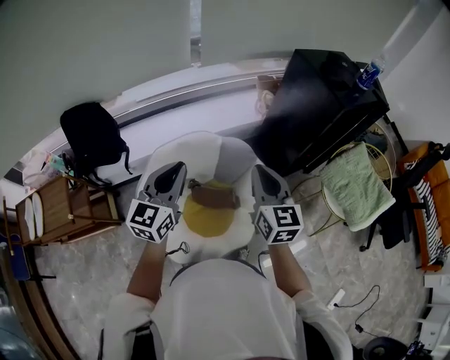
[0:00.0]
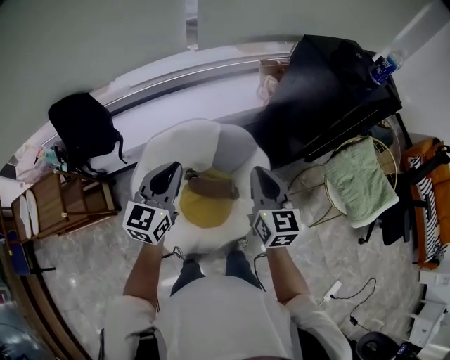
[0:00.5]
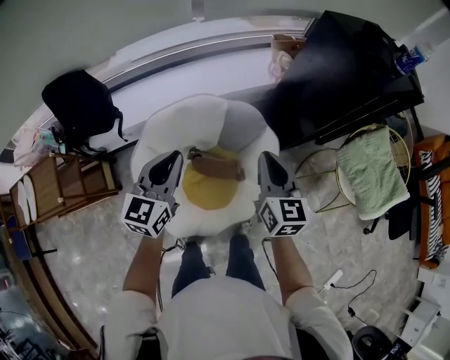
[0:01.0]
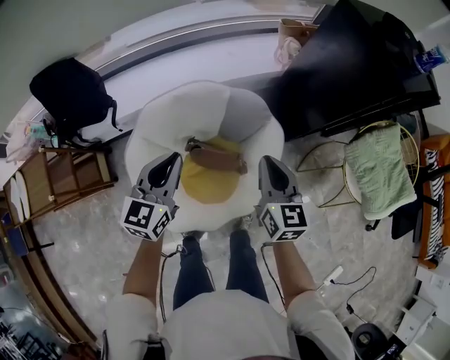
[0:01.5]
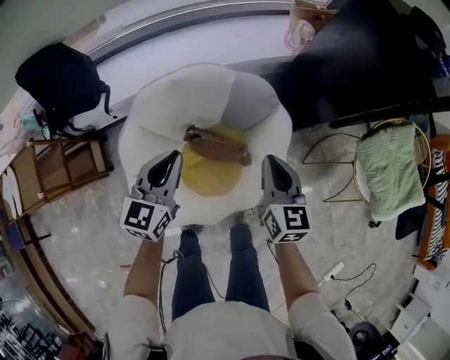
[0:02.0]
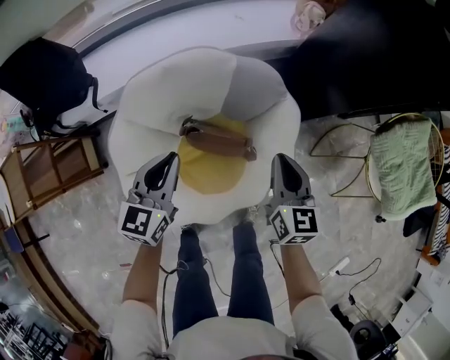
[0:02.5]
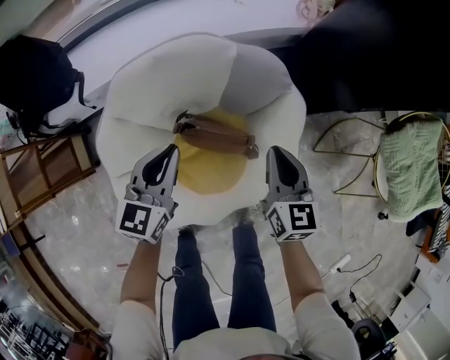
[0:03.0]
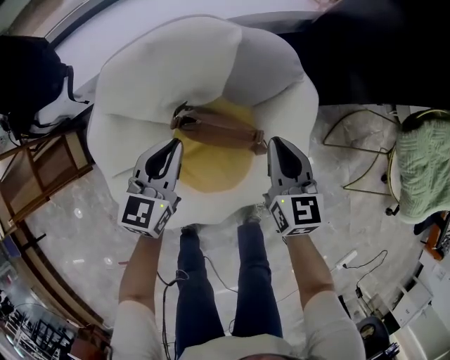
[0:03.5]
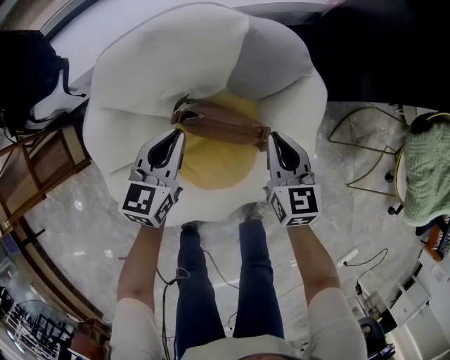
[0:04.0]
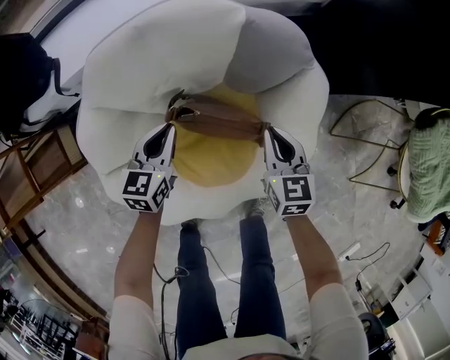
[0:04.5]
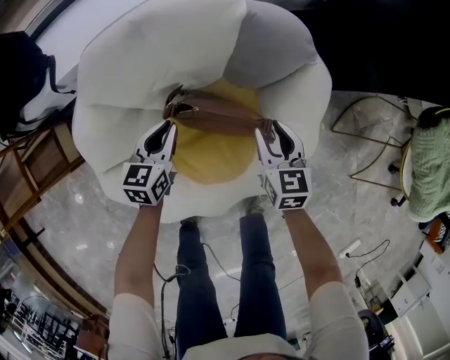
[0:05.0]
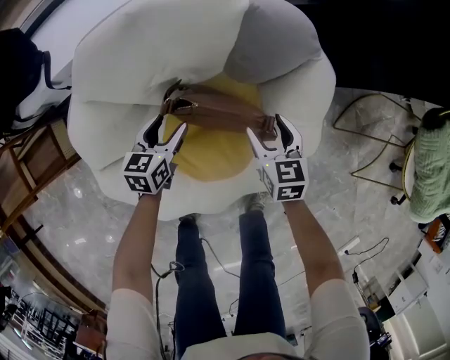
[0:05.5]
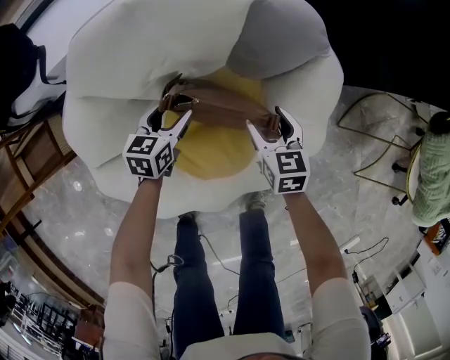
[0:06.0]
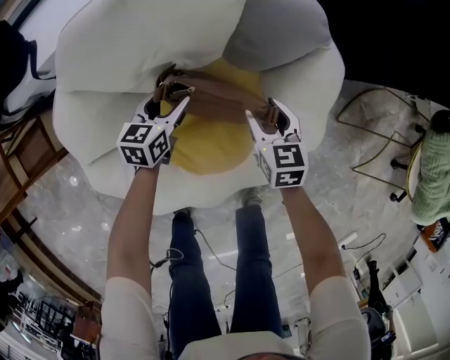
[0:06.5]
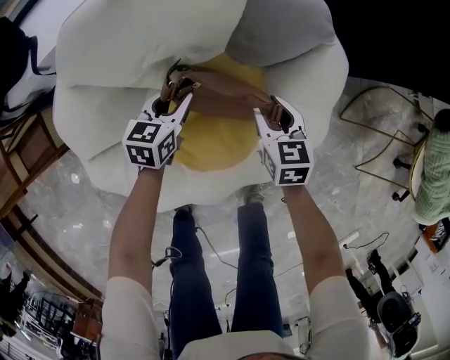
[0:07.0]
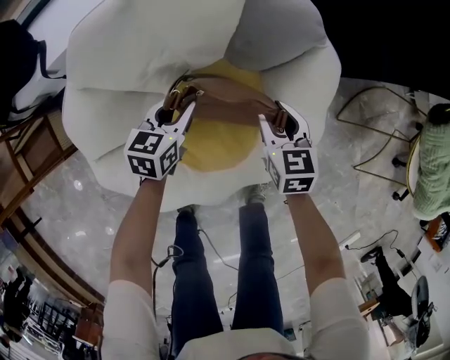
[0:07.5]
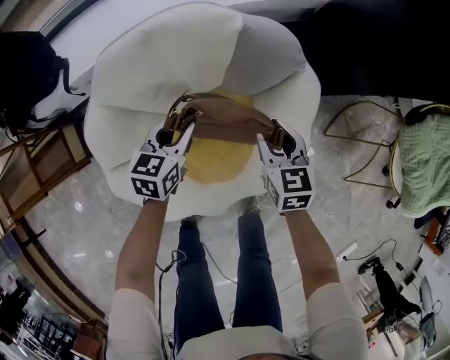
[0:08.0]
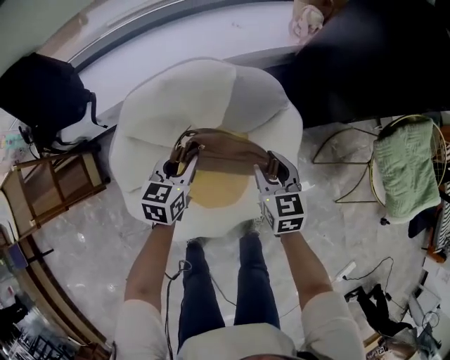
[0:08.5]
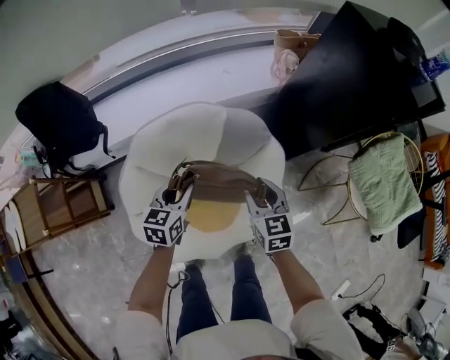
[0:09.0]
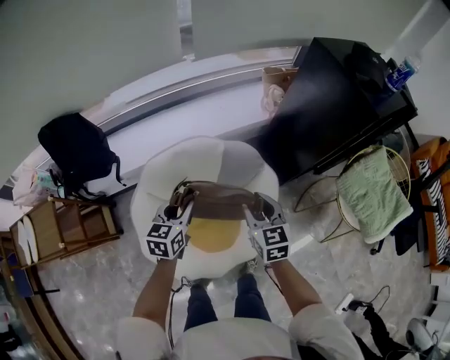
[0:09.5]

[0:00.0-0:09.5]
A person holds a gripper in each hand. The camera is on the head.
0:00.0 to 0:02.0: The grippers both shift downward by about 25 cm.
0:02.0 to 0:04.0: The grippers both shift downward by approximately 25 cm.
0:04.0 to 0:05.5: Both grippers move downward, approximately 15 cm. The right gripper opens; the left gripper opens.
0:05.5 to 0:07.5: The right gripper closes. Meanwhile the left gripper closes its fingers.
0:07.5 to 0:09.5: The grippers both shift upward by some 40 cm.

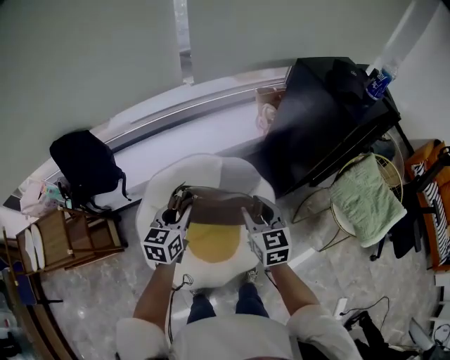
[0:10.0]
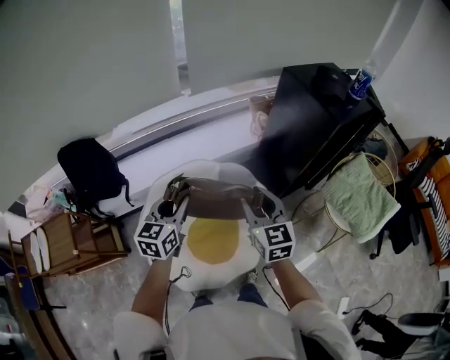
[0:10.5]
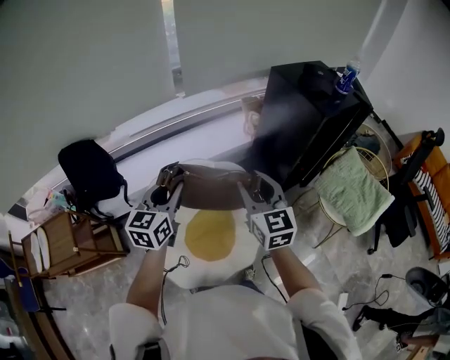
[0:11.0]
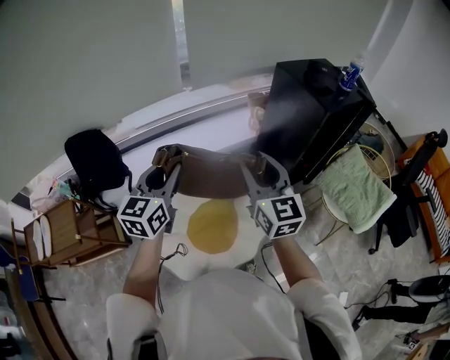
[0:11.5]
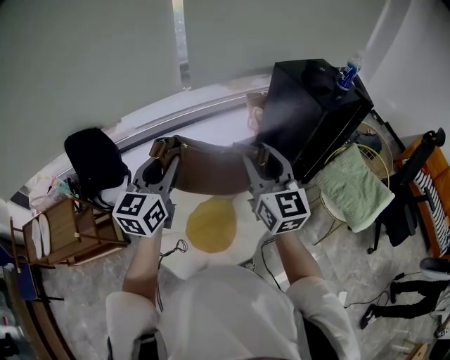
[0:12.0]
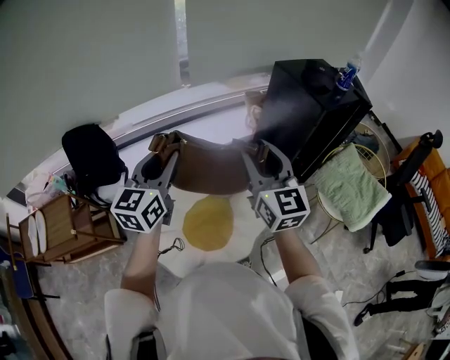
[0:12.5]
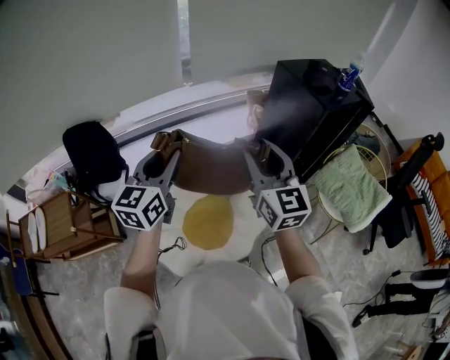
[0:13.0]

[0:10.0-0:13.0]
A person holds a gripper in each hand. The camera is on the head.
0:10.0 to 0:11.5: The grippers both shift upward by approximately 20 cm. The right gripper changes its angle by some 20 degrees.
0:11.5 to 0:13.0: The grippers move only a little.

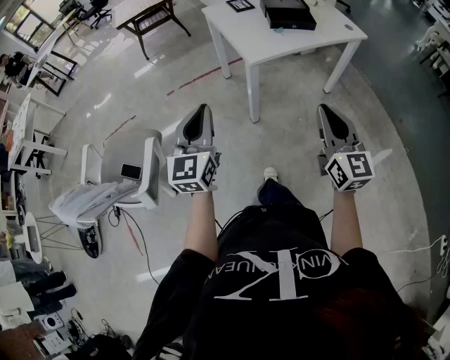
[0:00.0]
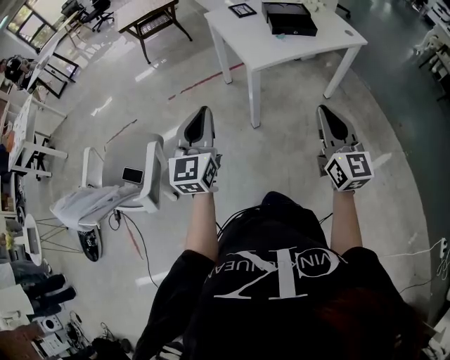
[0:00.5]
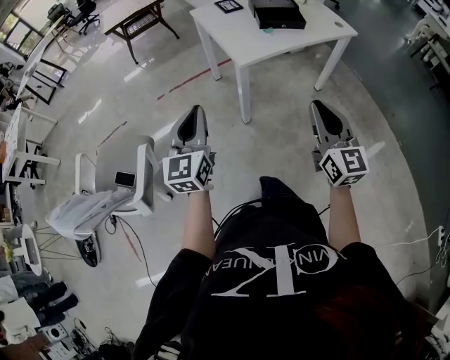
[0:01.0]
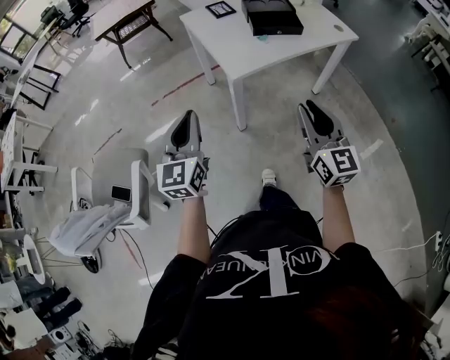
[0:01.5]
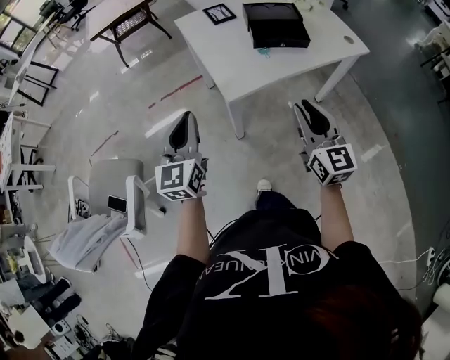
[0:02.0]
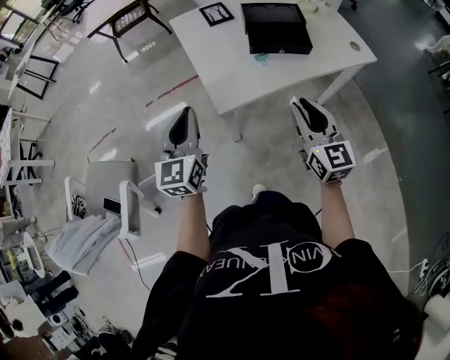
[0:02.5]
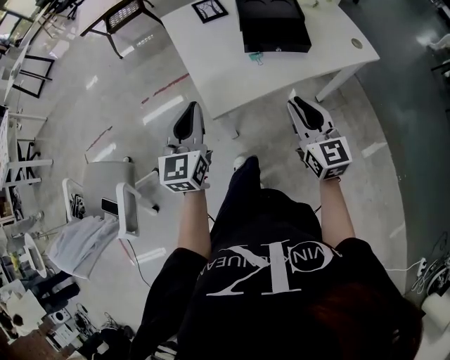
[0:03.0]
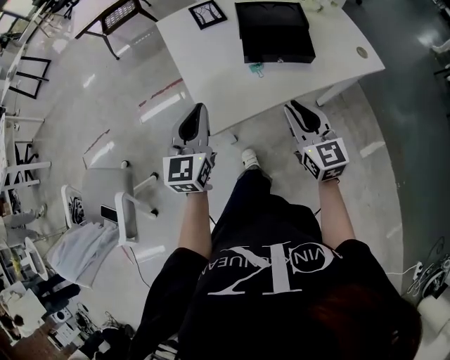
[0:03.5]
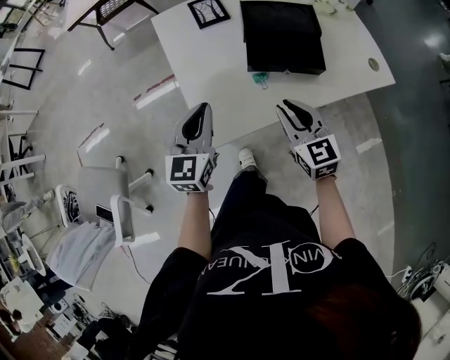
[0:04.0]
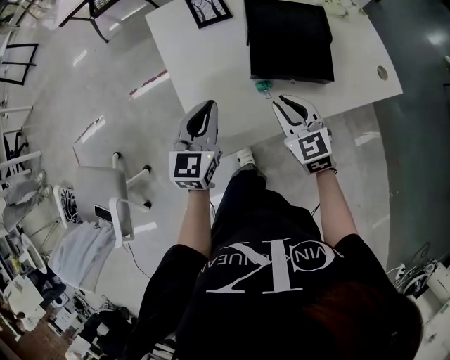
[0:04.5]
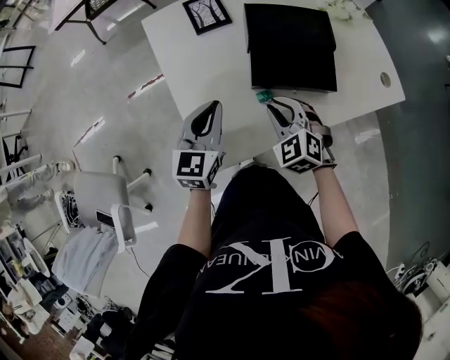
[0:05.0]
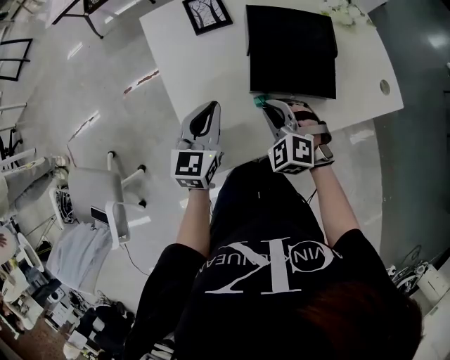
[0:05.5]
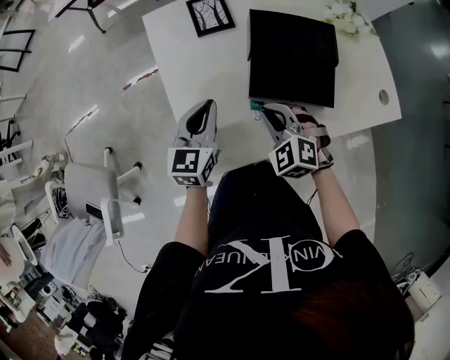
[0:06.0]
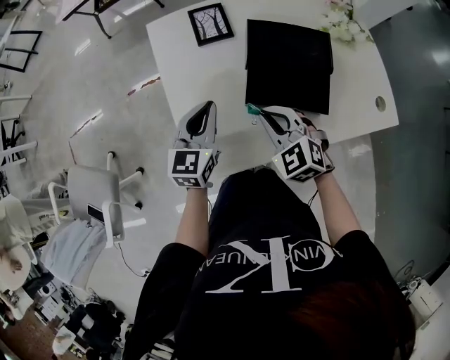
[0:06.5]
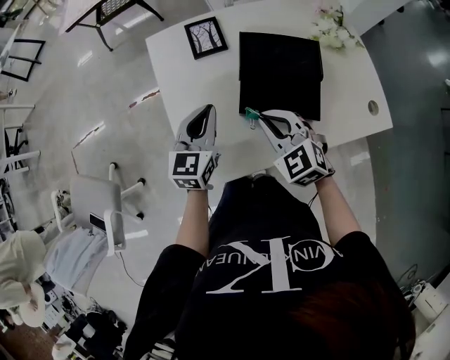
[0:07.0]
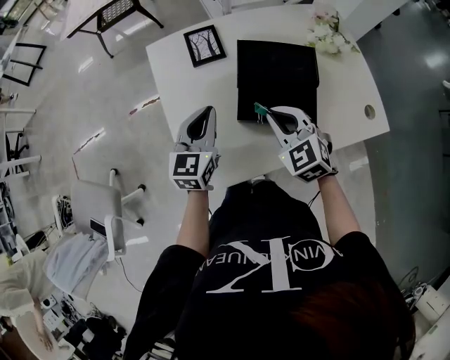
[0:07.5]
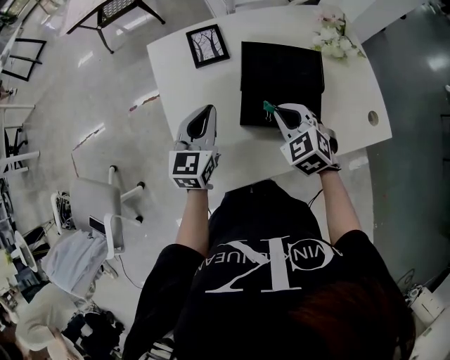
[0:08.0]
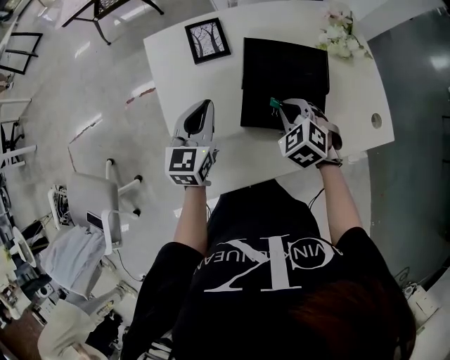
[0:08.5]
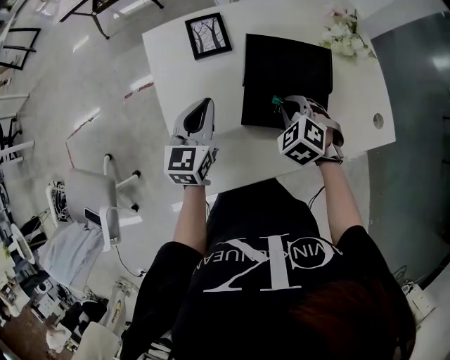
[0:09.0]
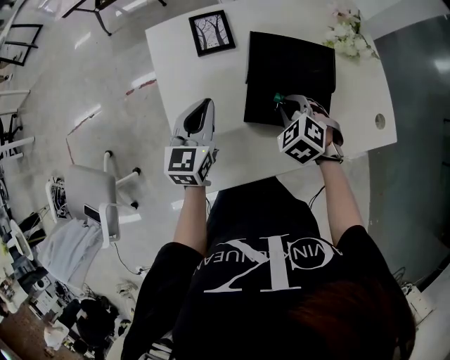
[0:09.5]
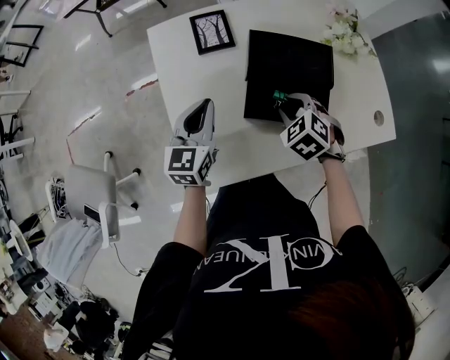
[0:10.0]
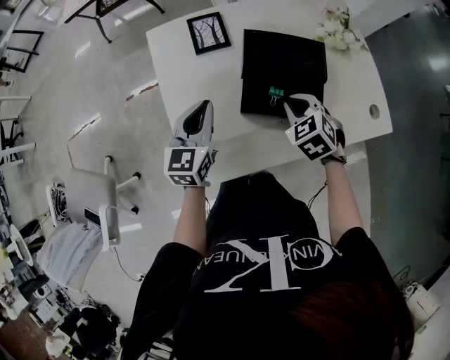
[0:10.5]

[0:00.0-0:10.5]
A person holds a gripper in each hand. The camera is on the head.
0:00.0 to 0:02.0: Both grippers move forward, roughly 20 cm.
0:02.0 to 0:04.0: The left gripper is displaced forward, to the right and downward by about 25 cm. Meanwhile the right gripper goes about 25 cm forward and downward, and rotates approximately 20 degrees.
0:04.0 to 0:06.5: The grippers both shift forward by about 10 cm. The right gripper turns by roughly 40 degrees.
0:06.5 to 0:08.5: The left gripper travels forward by approximately 5 cm. Meanwhile the right gripper is displaced to the right and forward by approximately 10 cm, and rotates approximately 20 degrees.
0:08.5 to 0:10.5: The grippers make only small movements.

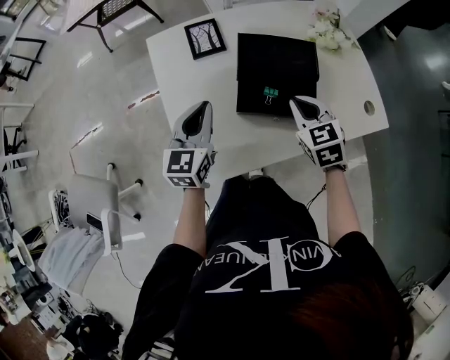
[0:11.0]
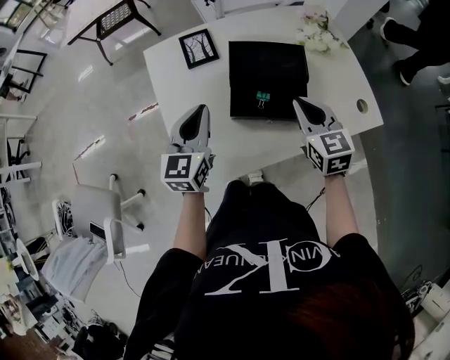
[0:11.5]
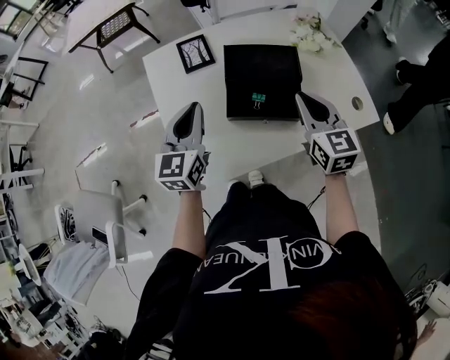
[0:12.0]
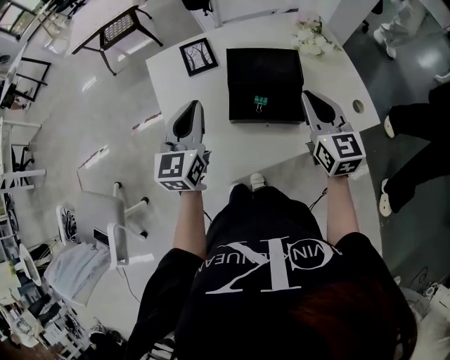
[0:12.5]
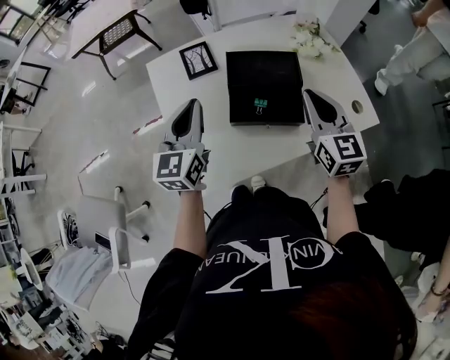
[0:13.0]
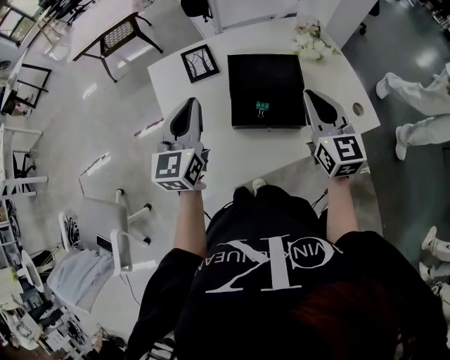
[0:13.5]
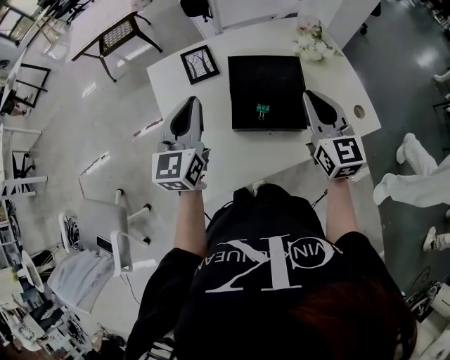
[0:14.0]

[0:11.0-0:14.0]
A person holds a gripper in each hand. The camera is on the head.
0:11.0 to 0:12.5: Both grippers move upward, about 10 cm. The right gripper turns by some 30 degrees.
0:12.5 to 0:14.0: There are only small adjustments of the grippers.
